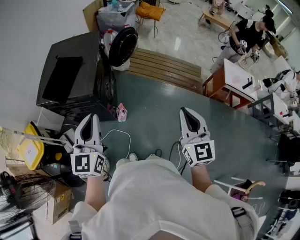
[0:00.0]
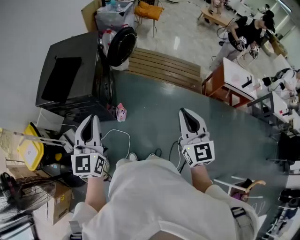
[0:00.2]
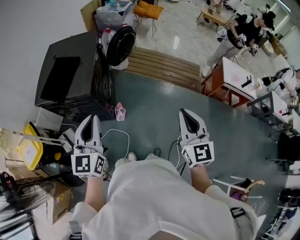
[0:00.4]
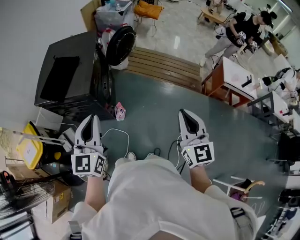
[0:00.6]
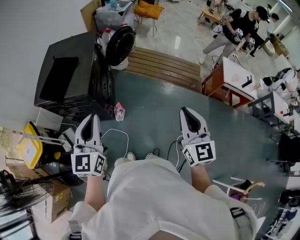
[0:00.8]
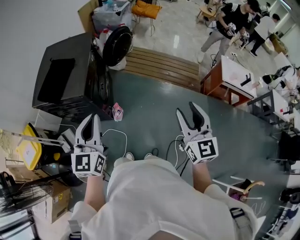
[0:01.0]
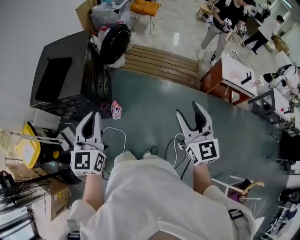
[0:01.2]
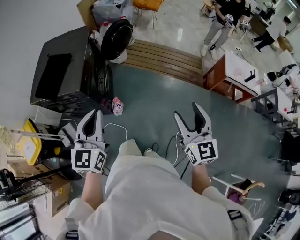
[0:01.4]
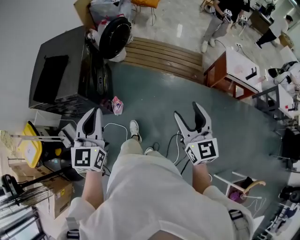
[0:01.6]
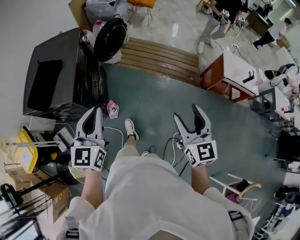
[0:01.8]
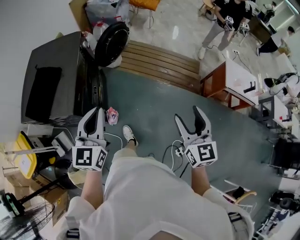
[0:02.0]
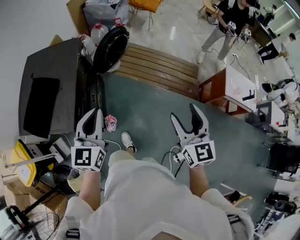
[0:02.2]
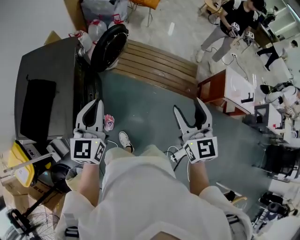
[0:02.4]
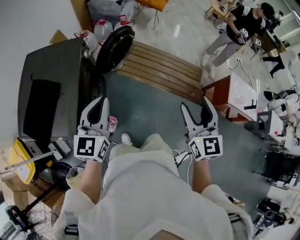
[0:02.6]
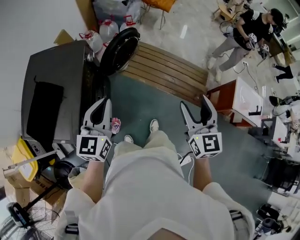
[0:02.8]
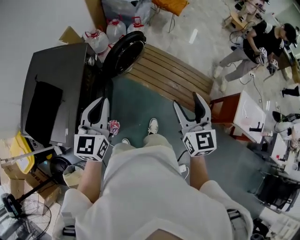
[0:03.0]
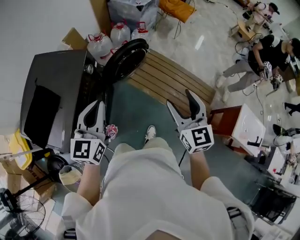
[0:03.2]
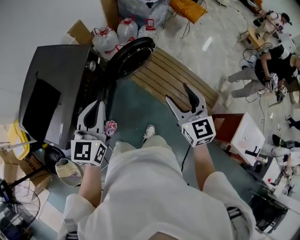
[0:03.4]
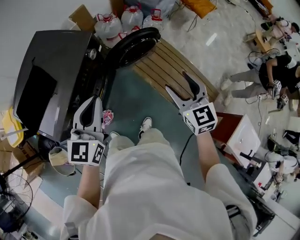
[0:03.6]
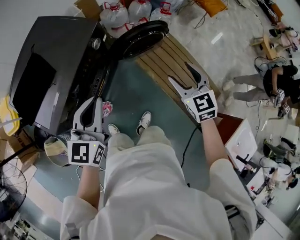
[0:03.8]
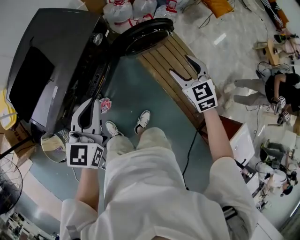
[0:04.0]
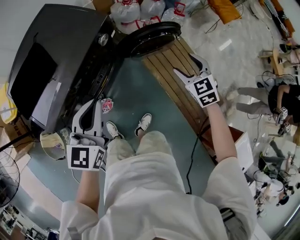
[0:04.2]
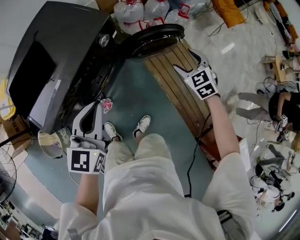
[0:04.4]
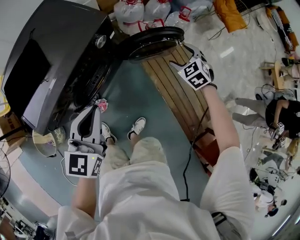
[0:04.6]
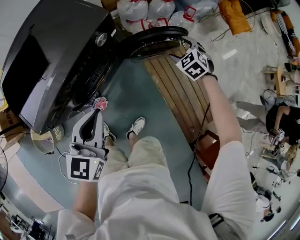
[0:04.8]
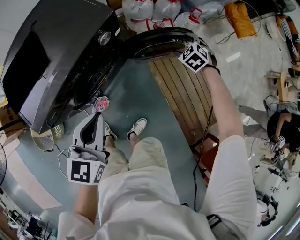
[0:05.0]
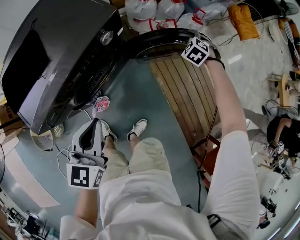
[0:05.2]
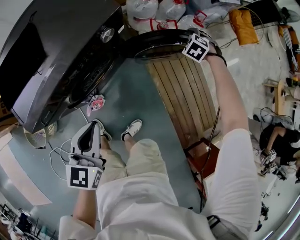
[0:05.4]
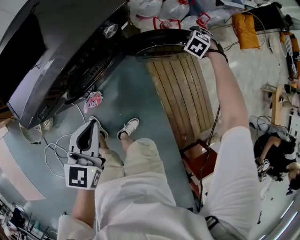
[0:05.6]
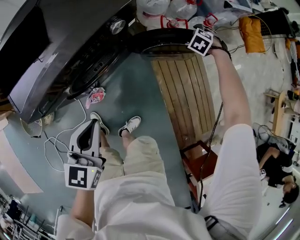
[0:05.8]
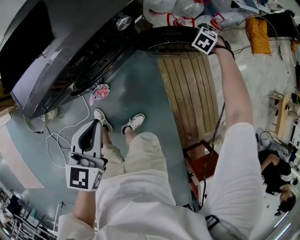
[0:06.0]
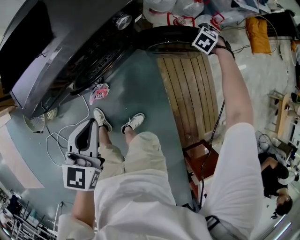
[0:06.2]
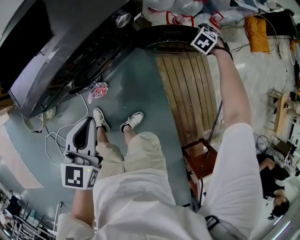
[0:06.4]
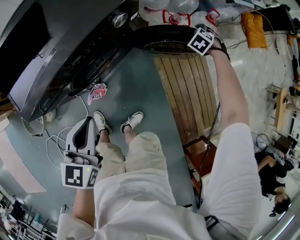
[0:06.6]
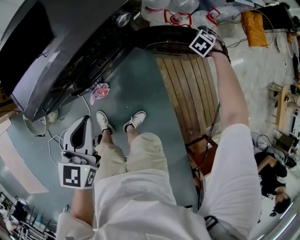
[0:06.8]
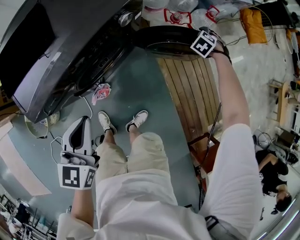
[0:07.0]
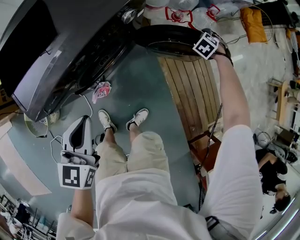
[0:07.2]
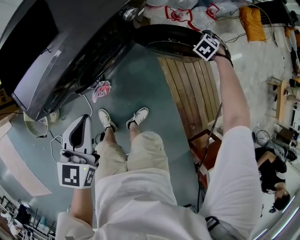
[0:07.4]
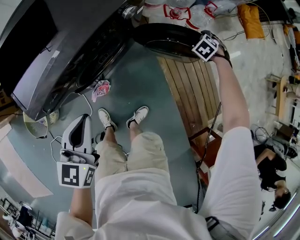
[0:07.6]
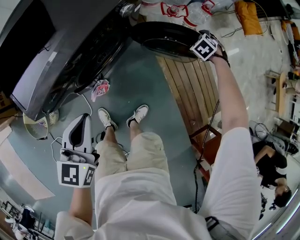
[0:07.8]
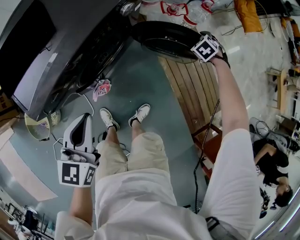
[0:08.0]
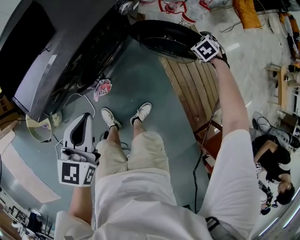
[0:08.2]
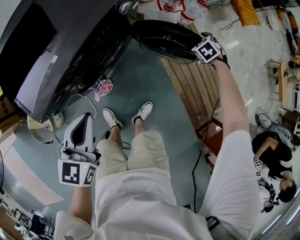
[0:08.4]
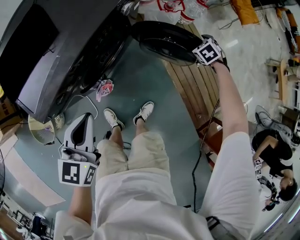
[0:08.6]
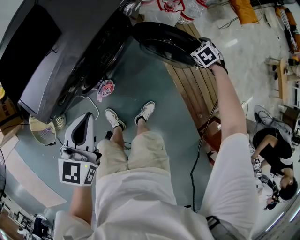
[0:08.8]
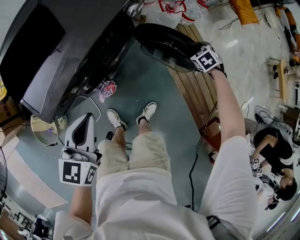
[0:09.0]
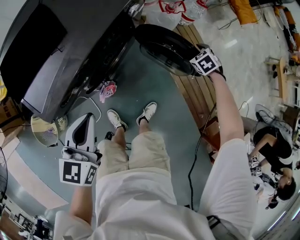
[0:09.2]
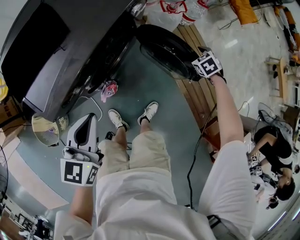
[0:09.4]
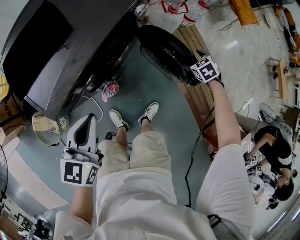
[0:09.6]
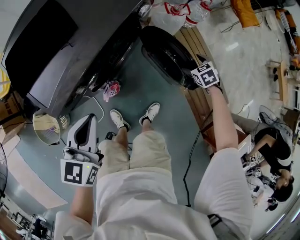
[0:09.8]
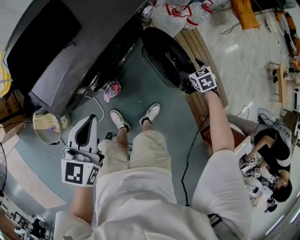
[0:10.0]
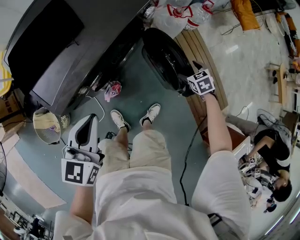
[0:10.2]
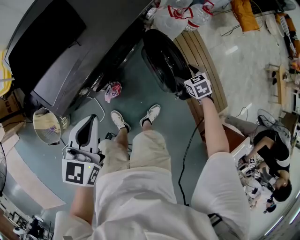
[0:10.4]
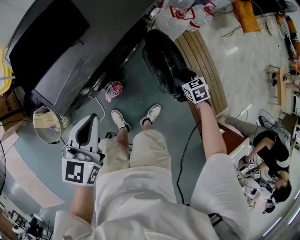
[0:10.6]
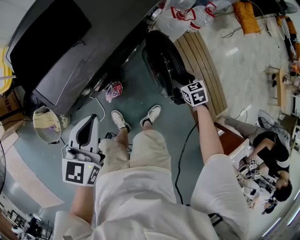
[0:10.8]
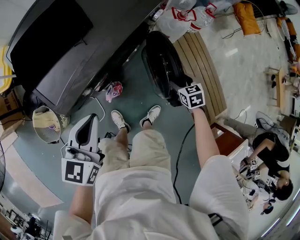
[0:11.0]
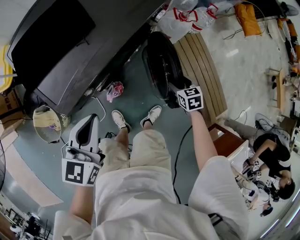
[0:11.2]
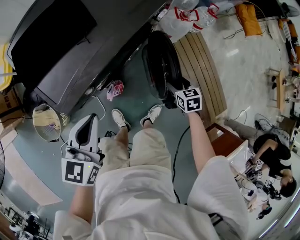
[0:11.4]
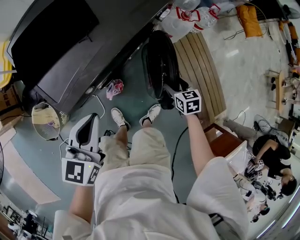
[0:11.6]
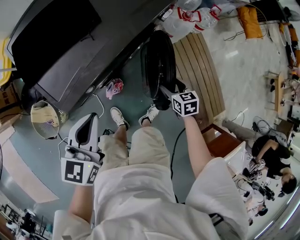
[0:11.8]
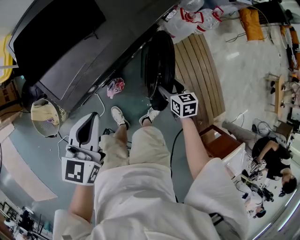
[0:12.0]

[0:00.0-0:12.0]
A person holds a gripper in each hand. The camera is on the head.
0:00.0 to 0:01.6: Both grippers move to the right, some 10 cm. The right gripper opens up.
0:01.6 to 0:03.0: Both grippers are carried forward, approximately 40 cm.
0:03.0 to 0:04.4: The left gripper moves downward, approximately 5 cm, and turns by roughly 30 degrees. Meanwhile the right gripper shifts by approximately 40 cm, and points its fingers about 30 degrees further downward.
0:04.4 to 0:06.0: The right gripper moves about 30 cm, and points its fingers roughly 30 degrees further downward. Meanwhile the left gripper heads downward, covering some 10 cm.
0:06.0 to 0:07.6: The right gripper ends up some 10 cm from where it was. The left gripper shifts by roughly 10 cm.
0:07.6 to 0:09.0: The right gripper shifts by some 10 cm, and swivels about 20 degrees.
0:09.0 to 0:10.4: The right gripper heads backward and to the left, covering about 15 cm, while the left gripper moves roughly 5 cm.
0:10.4 to 0:12.0: The right gripper is displaced to the left by roughly 15 cm, and turns by roughly 20 degrees.

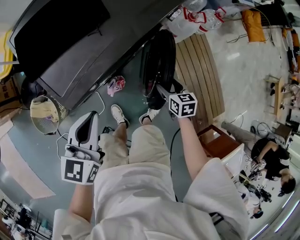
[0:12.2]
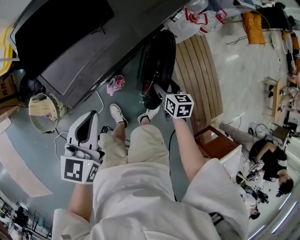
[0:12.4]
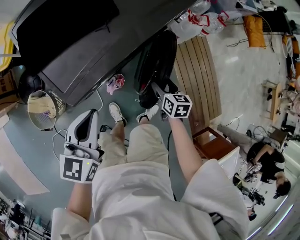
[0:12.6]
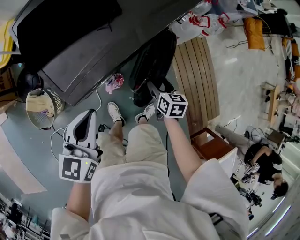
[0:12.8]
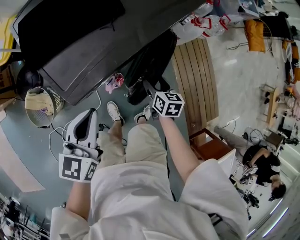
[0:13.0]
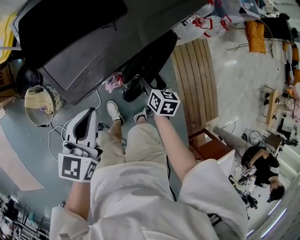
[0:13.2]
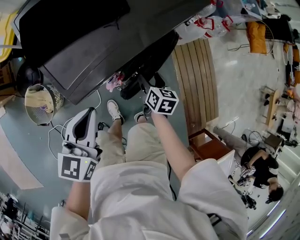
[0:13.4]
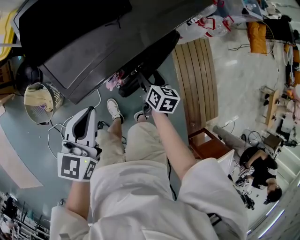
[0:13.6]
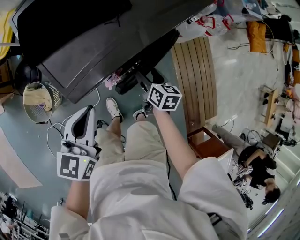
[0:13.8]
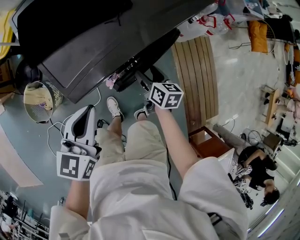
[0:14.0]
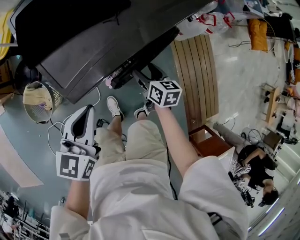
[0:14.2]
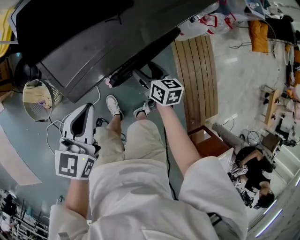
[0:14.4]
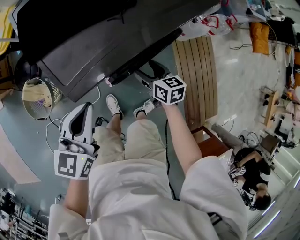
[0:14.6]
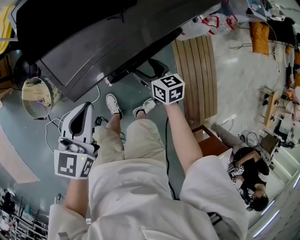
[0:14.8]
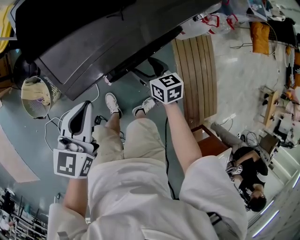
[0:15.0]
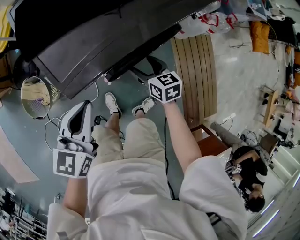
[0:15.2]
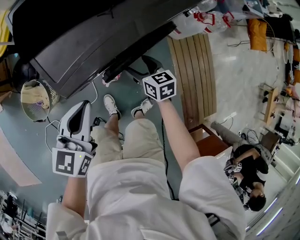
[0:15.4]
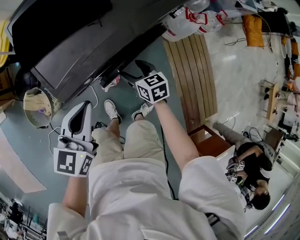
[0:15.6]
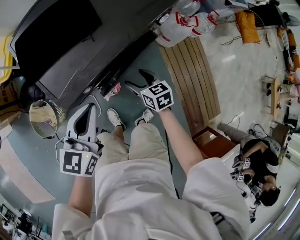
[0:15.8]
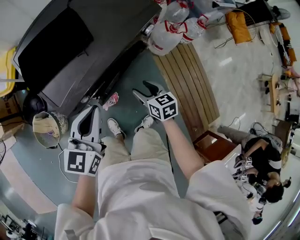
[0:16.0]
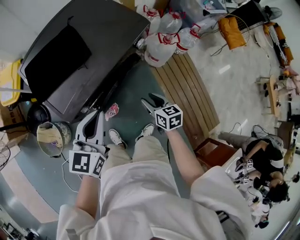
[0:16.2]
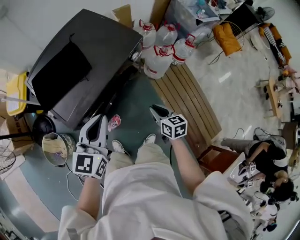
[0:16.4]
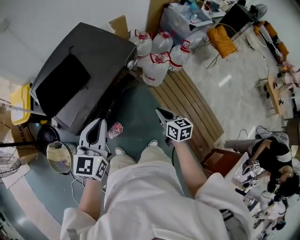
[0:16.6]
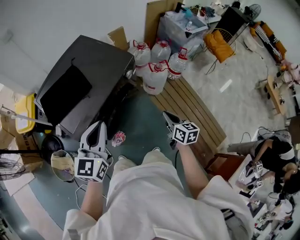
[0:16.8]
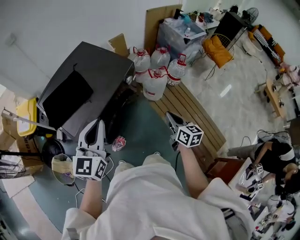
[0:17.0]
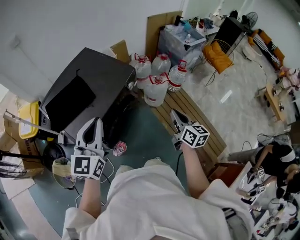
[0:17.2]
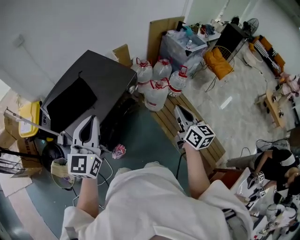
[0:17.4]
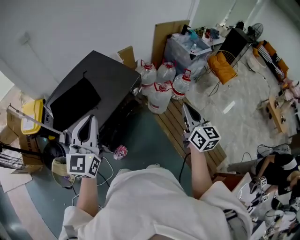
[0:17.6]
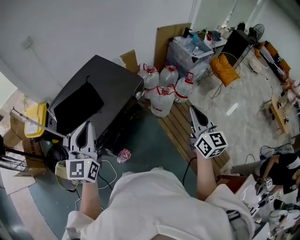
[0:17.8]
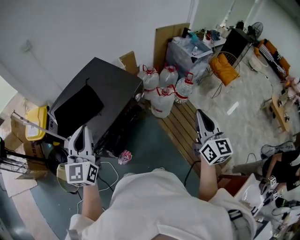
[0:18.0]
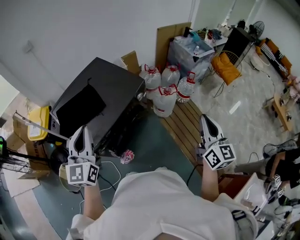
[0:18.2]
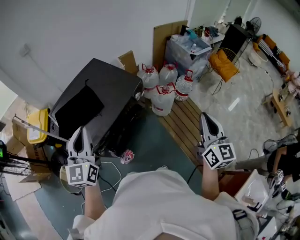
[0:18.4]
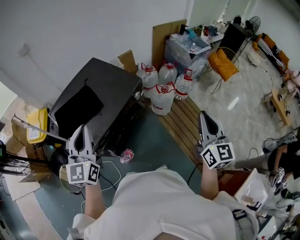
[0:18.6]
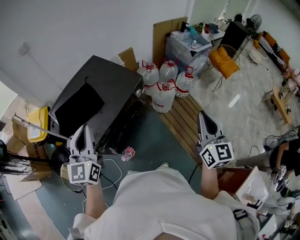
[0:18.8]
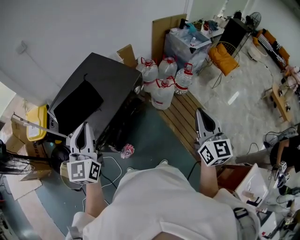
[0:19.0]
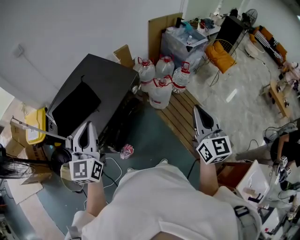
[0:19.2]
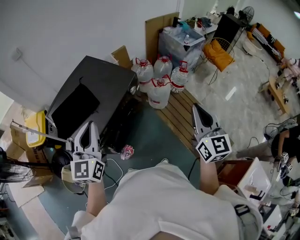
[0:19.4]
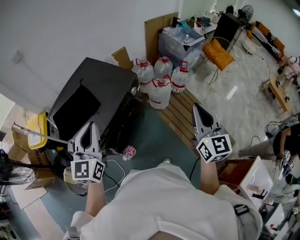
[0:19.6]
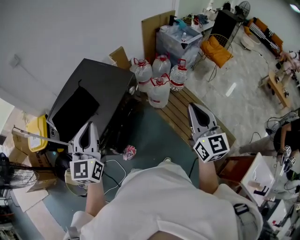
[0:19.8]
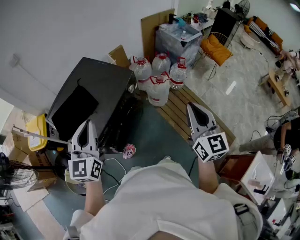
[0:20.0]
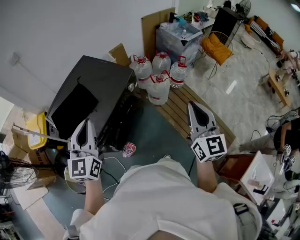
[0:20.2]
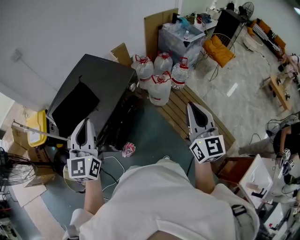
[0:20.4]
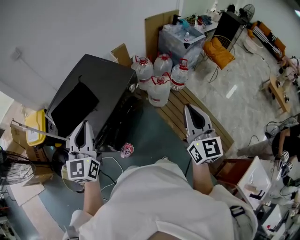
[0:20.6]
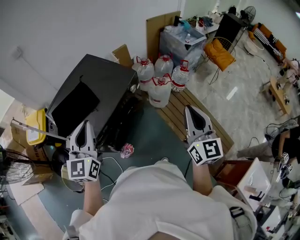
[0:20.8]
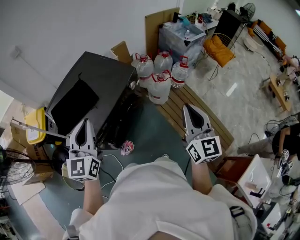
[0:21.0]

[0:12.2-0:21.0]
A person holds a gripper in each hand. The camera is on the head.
0:12.2 to 0:13.6: The right gripper moves to the left, about 10 cm.
0:13.6 to 0:15.2: The right gripper rotates roughly 30 degrees.
0:15.2 to 0:16.6: The left gripper shifts roughly 25 cm upward and to the right, and rotates some 20 degrees; the right gripper moves to the right, upward and backward, approximately 35 cm, swivels about 30 degrees, and closes its fingers.
0:16.6 to 0:18.0: The left gripper travels upward and to the left by about 15 cm, and turns by approximately 20 degrees. Meanwhile the right gripper heads upward, covering some 30 cm, and turns by about 40 degrees.
0:18.0 to 0:21.0: The grippers stay close to where they were, moving slightly.

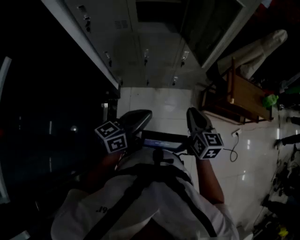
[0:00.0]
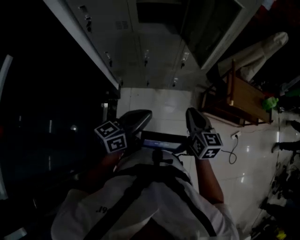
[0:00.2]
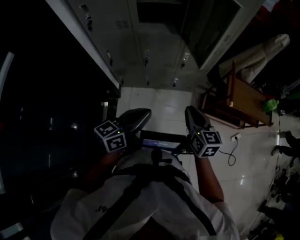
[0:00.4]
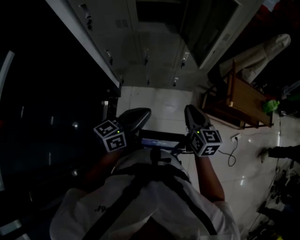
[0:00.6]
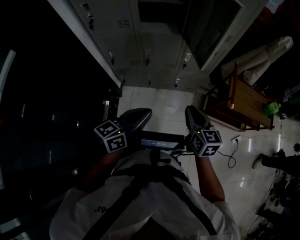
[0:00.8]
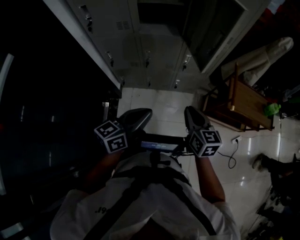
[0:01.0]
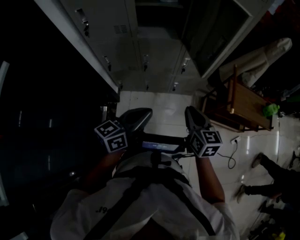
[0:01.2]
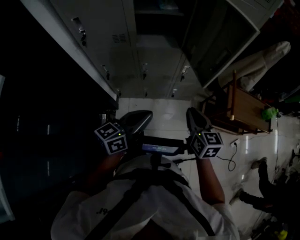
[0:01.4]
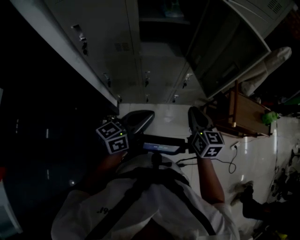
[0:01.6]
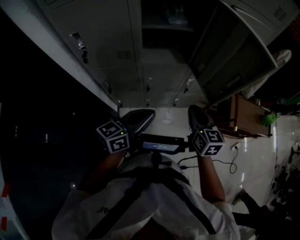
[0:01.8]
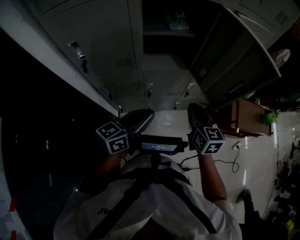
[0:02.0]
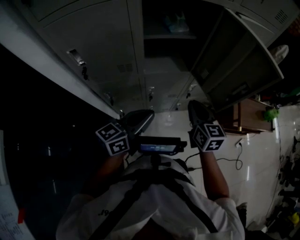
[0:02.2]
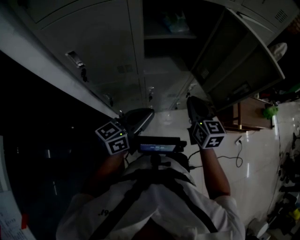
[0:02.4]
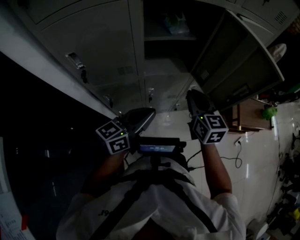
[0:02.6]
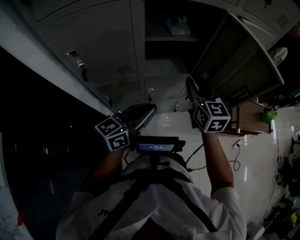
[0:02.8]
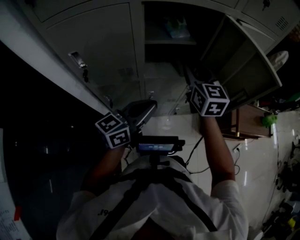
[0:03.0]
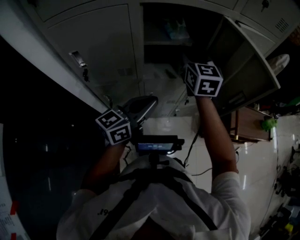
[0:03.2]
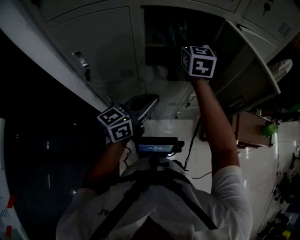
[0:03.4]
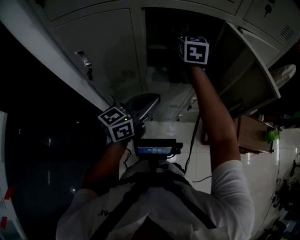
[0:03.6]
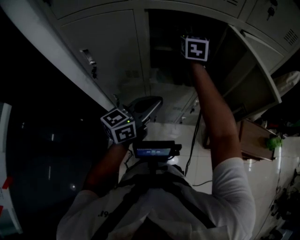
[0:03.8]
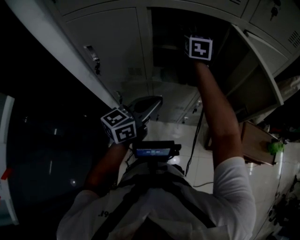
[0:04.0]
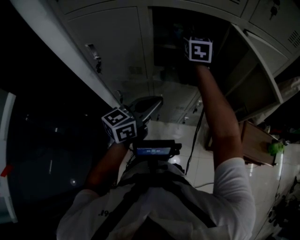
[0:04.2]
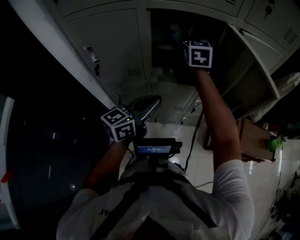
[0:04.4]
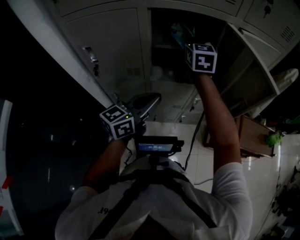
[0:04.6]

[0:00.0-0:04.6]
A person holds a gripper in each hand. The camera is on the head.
0:00.0 to 0:01.6: Both grippers travel together forward and to the left, about 15 cm.
0:01.6 to 0:03.0: The left gripper is displaced forward, to the left and upward by some 15 cm; the right gripper travels forward, to the left and upward by some 30 cm, and opens.
0:03.0 to 0:04.6: The right gripper shifts approximately 15 cm forward, upward and to the left, and closes up.
